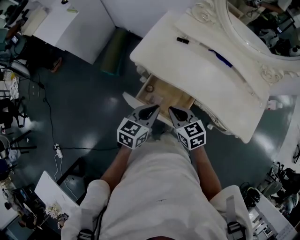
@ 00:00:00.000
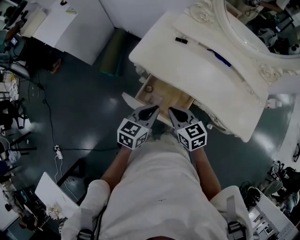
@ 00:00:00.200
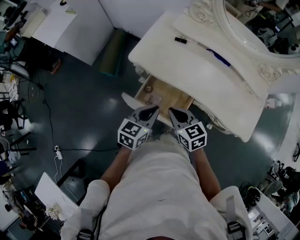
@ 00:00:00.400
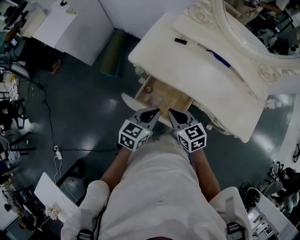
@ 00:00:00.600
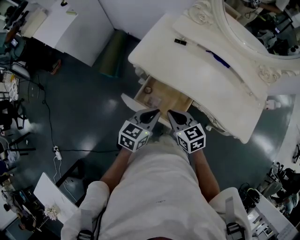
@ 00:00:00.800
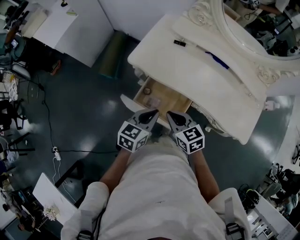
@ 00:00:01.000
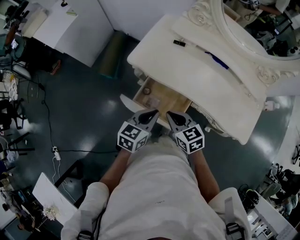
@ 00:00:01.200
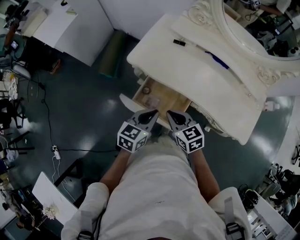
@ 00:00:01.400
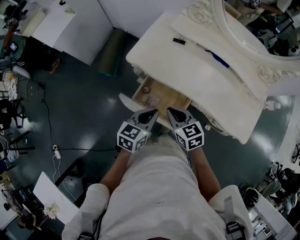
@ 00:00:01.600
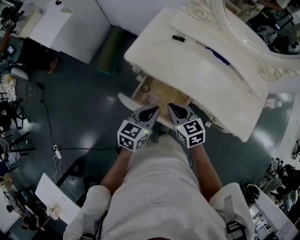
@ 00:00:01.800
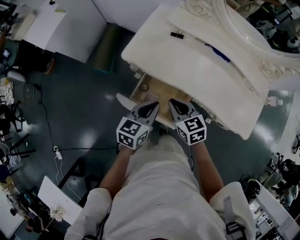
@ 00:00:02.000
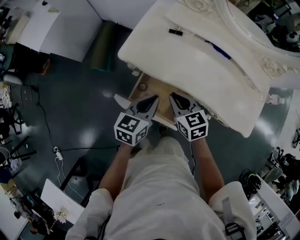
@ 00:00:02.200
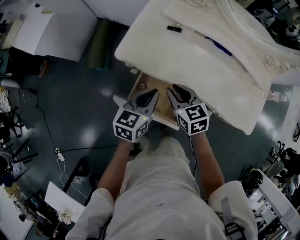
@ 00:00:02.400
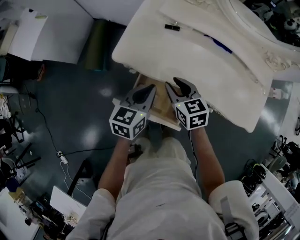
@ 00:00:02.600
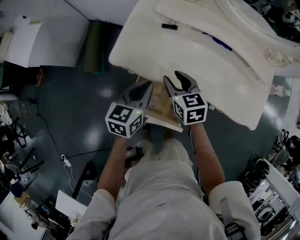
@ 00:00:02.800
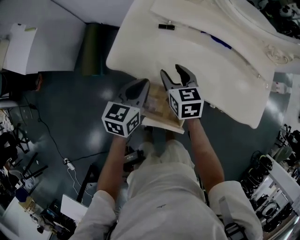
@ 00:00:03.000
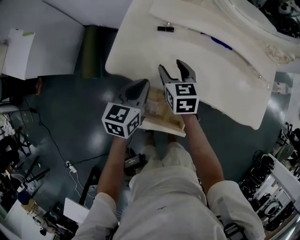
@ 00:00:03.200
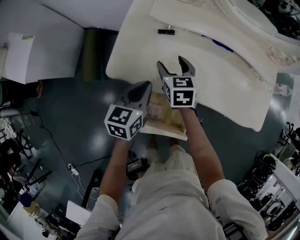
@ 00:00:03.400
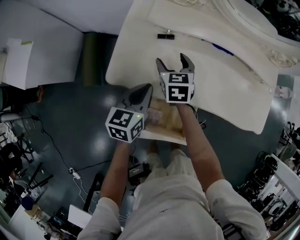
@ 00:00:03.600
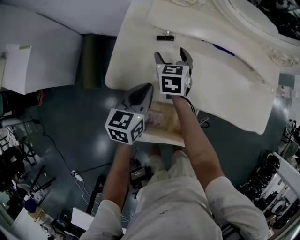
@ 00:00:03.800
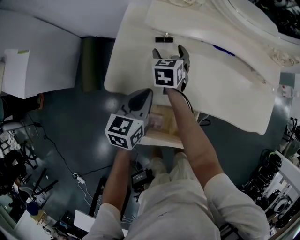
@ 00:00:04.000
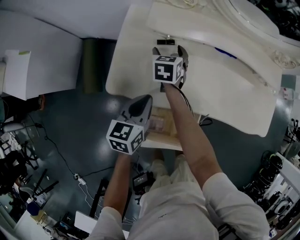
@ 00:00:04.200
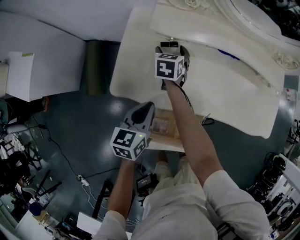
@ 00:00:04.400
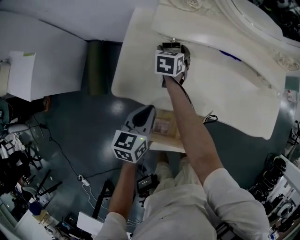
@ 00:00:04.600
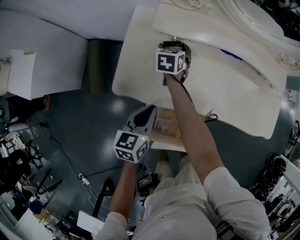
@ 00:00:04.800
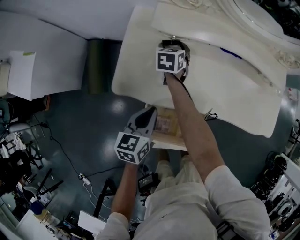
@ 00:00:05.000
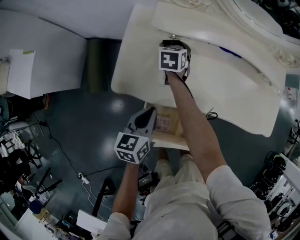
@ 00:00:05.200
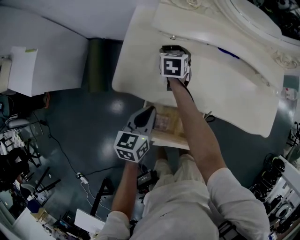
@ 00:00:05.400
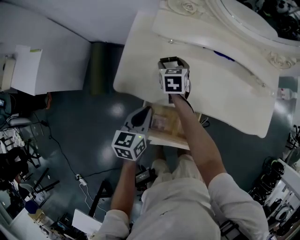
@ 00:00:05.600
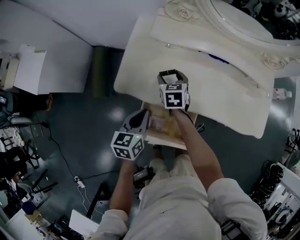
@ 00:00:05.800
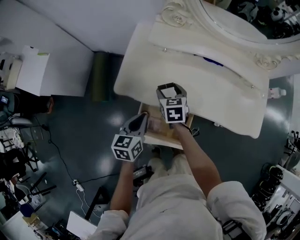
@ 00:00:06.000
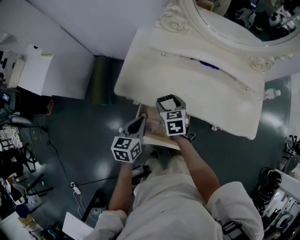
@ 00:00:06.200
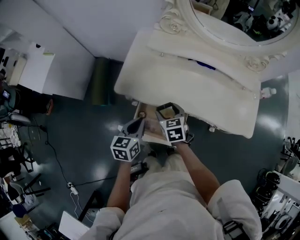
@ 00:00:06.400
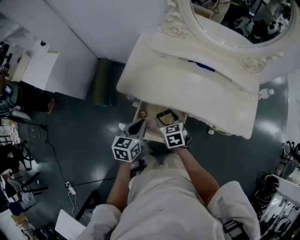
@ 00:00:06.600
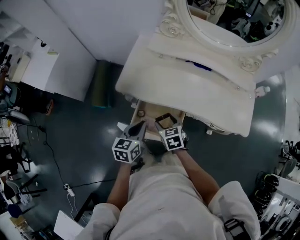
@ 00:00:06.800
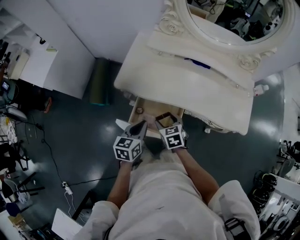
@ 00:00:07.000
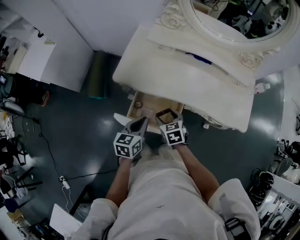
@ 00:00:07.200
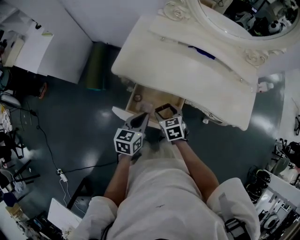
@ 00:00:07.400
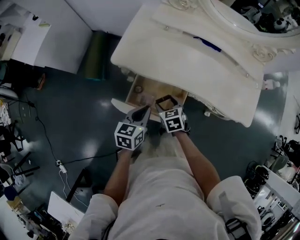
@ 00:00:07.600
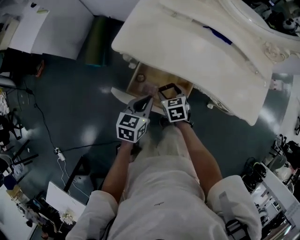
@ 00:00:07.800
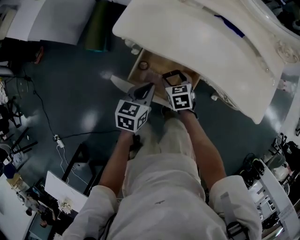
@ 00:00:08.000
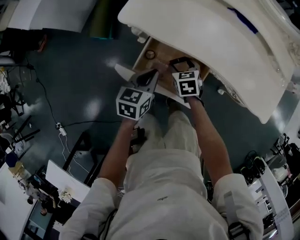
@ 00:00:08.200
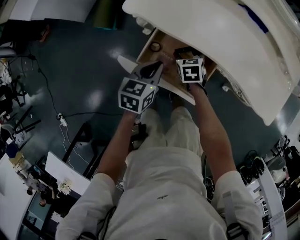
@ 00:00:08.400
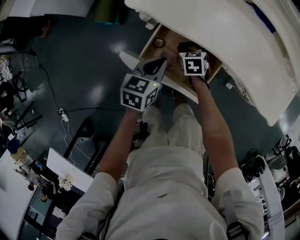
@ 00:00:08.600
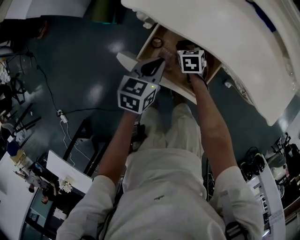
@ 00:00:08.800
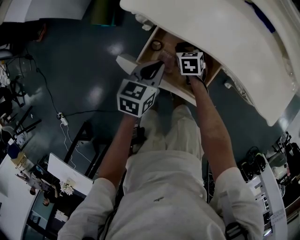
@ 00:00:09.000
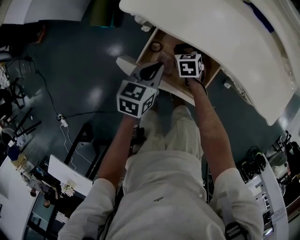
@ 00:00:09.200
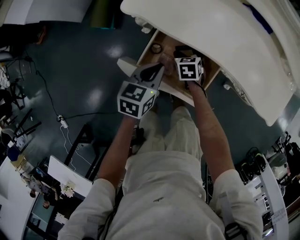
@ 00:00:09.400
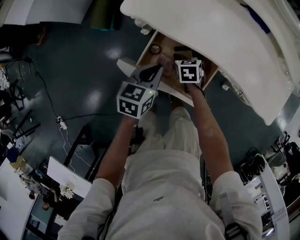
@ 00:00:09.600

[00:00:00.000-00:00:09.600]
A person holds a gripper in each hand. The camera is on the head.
00:00:00.000 to 00:00:01.600: There are only small adjustments of the grippers.
00:00:01.600 to 00:00:03.200: Both grippers move forward, about 20 cm. The right gripper rotates approximately 30 degrees, and opens.
00:00:03.200 to 00:00:04.800: The right gripper heads forward and downward, covering approximately 20 cm, and turns by about 20 degrees.
00:00:04.800 to 00:00:06.400: The right gripper travels backward by some 30 cm, and rotates some 30 degrees. Meanwhile the left gripper shifts roughly 15 cm backward and upward.
00:00:06.400 to 00:00:08.000: The grippers both shift downward by roughly 10 cm.
00:00:08.000 to 00:00:09.600: The right gripper moves downward, approximately 10 cm.

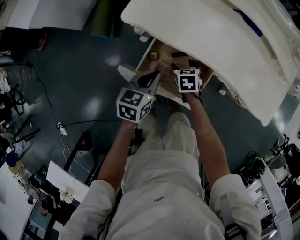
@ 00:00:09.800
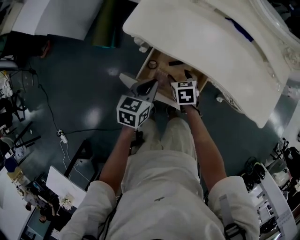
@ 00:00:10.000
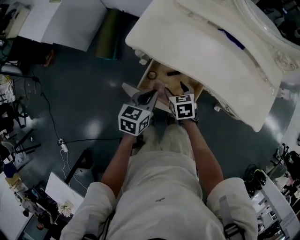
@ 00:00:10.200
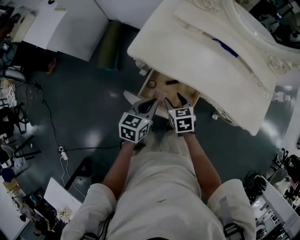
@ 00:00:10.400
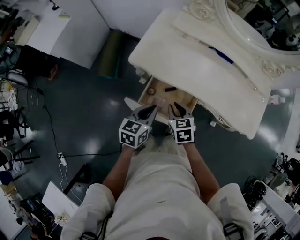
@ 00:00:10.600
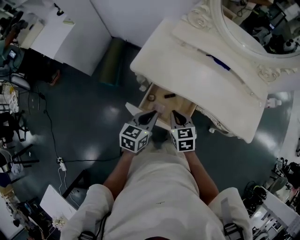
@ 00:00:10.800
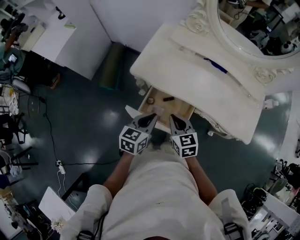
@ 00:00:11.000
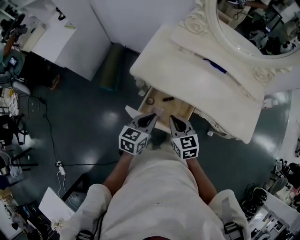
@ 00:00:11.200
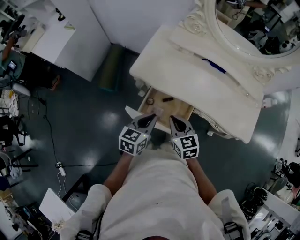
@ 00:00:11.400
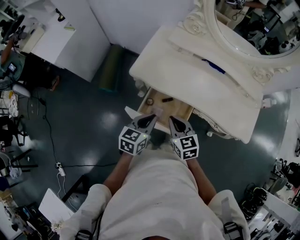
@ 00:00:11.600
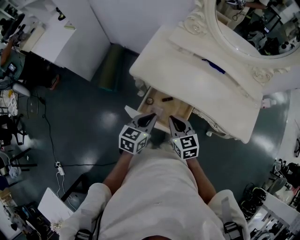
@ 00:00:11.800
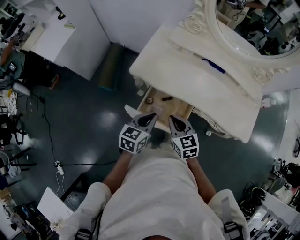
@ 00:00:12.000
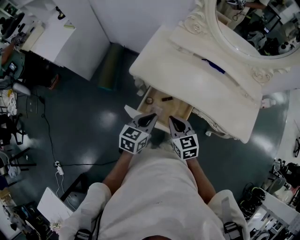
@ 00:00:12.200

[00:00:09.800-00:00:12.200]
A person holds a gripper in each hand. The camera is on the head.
00:00:09.800 to 00:00:11.000: The left gripper travels upward by roughly 15 cm; the right gripper travels upward by some 25 cm, swivels roughly 30 degrees, and closes its fingers.
00:00:11.000 to 00:00:12.200: The grippers stay close to where they were, moving slightly.

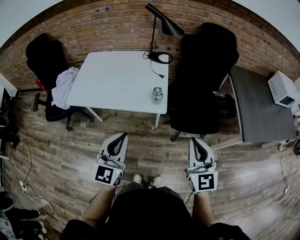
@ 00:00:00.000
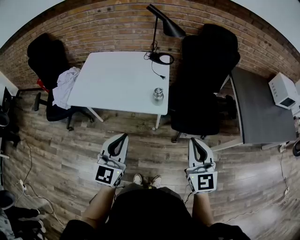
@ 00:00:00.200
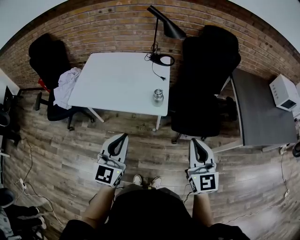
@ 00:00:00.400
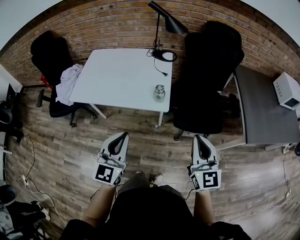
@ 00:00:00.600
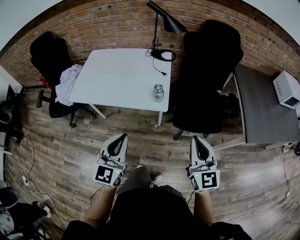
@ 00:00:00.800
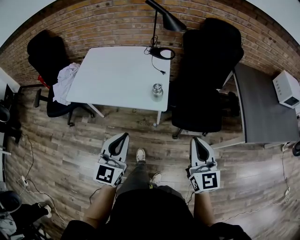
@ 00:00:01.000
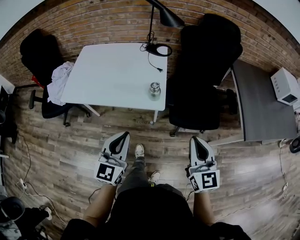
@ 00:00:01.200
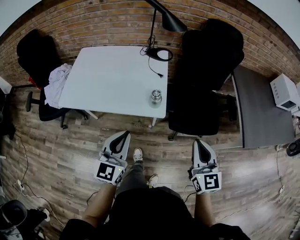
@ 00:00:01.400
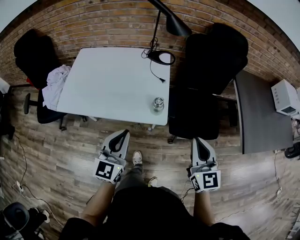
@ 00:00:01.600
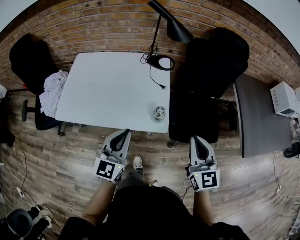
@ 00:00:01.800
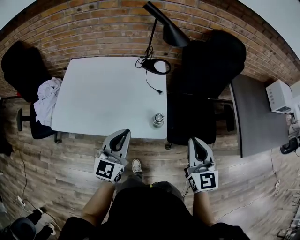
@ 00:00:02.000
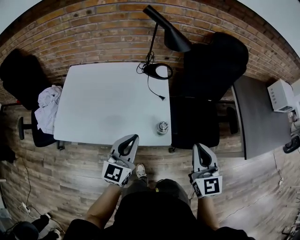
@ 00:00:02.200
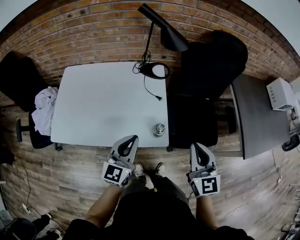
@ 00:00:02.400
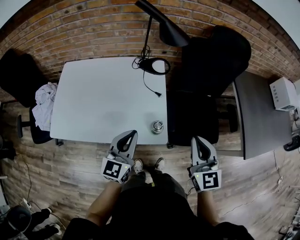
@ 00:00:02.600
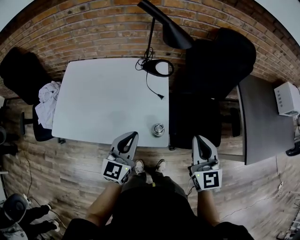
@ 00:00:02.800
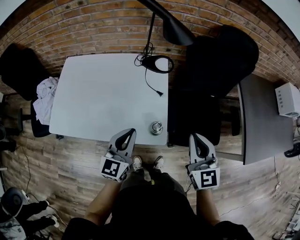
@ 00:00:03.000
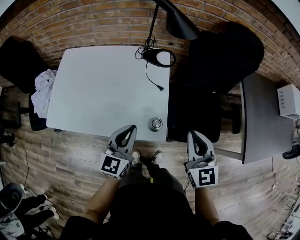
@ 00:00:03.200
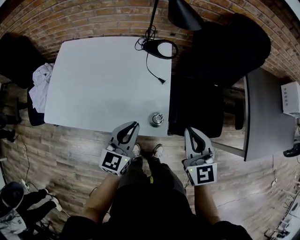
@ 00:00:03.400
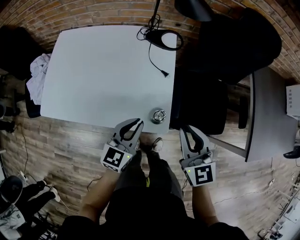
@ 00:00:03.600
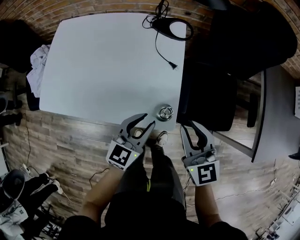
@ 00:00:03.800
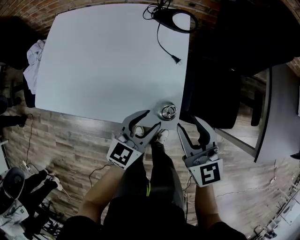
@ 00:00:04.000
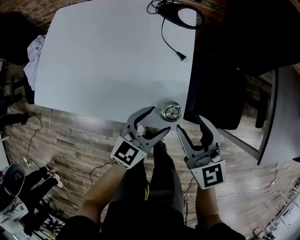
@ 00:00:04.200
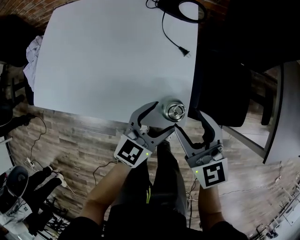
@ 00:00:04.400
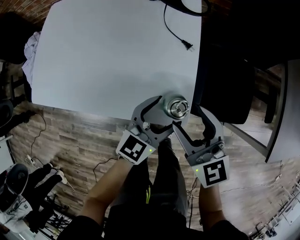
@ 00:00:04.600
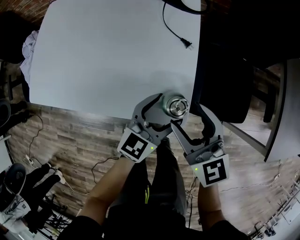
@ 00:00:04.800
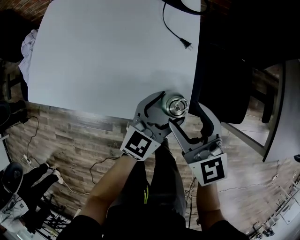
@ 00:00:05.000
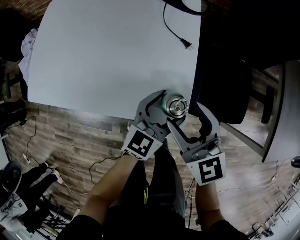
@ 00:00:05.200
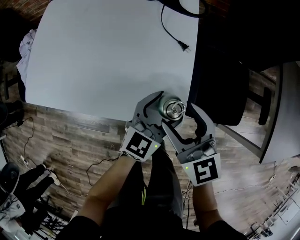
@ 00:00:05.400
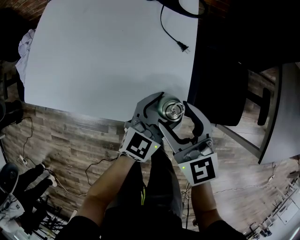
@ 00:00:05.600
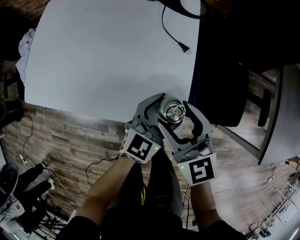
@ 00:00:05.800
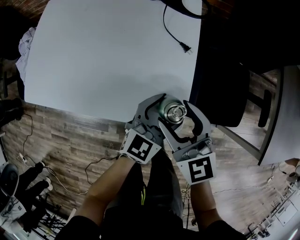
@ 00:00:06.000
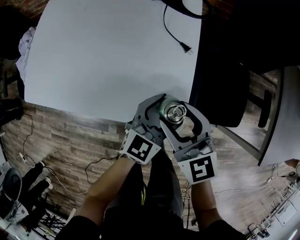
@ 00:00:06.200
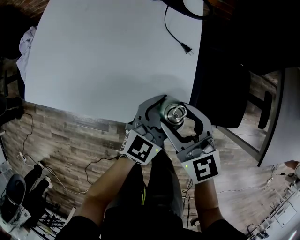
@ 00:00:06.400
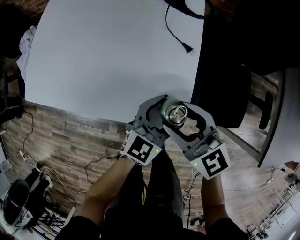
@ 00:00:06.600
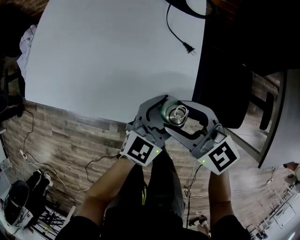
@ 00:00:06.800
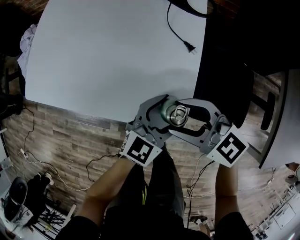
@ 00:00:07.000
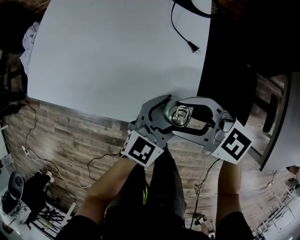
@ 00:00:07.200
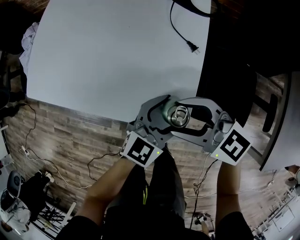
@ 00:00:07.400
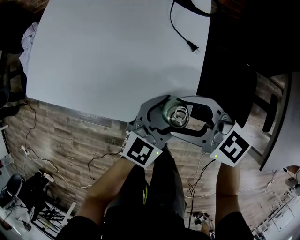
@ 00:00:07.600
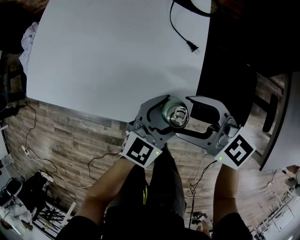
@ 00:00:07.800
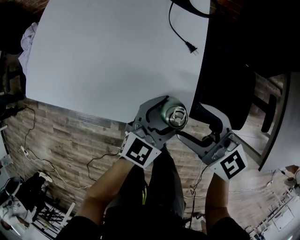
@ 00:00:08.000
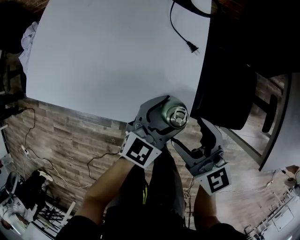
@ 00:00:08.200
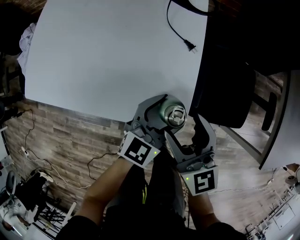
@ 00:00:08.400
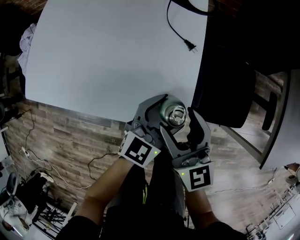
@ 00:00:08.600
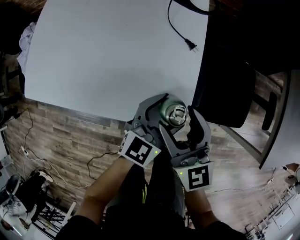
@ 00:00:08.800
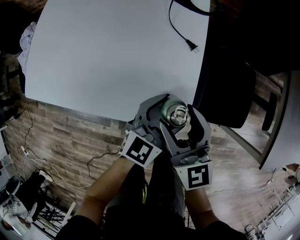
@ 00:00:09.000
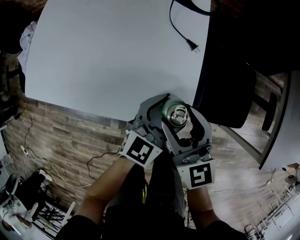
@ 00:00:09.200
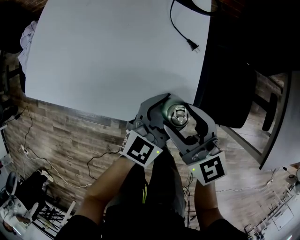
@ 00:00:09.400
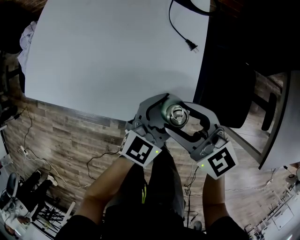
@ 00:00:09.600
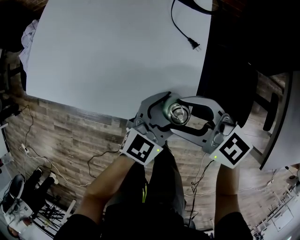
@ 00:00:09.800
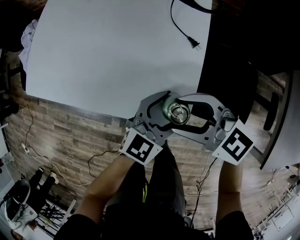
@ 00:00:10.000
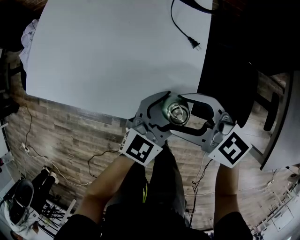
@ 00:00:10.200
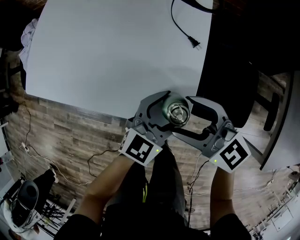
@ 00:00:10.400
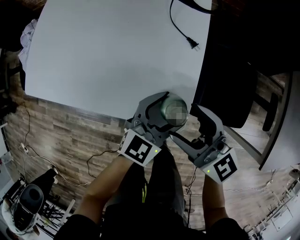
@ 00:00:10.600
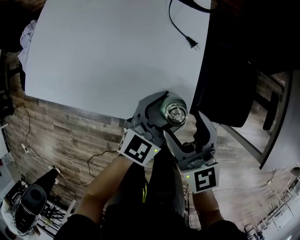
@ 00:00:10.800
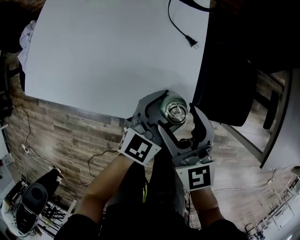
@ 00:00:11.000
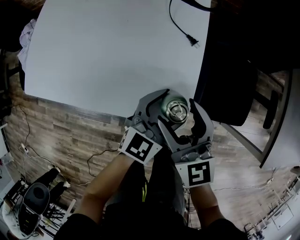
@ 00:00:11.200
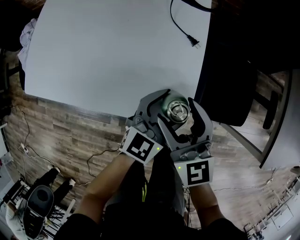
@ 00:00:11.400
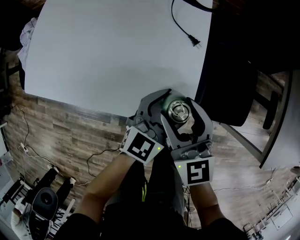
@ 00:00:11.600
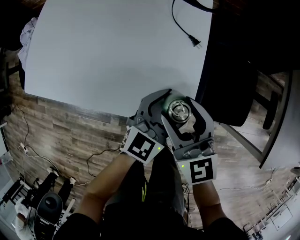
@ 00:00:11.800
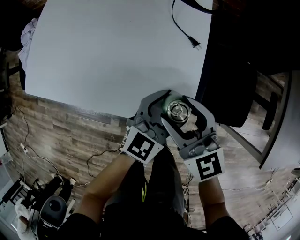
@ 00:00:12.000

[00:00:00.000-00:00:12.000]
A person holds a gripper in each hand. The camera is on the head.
00:00:00.000 to 00:00:01.600: Both grippers move forward, roughly 10 cm.
00:00:01.600 to 00:00:03.000: Both grippers travel together forward, about 15 cm.
00:00:03.000 to 00:00:04.400: The left gripper goes approximately 20 cm downward and to the right, and opens its fingers. The right gripper goes approximately 20 cm downward and to the left, turns by about 20 degrees, and opens.
00:00:04.400 to 00:00:06.000: The right gripper ends up approximately 5 cm from where it was.
00:00:06.000 to 00:00:07.600: The right gripper rotates about 40 degrees.
00:00:07.600 to 00:00:09.000: The right gripper changes its angle by some 50 degrees.
00:00:09.000 to 00:00:10.400: The right gripper turns by roughly 40 degrees.
00:00:10.400 to 00:00:12.000: The right gripper turns by about 20 degrees.
